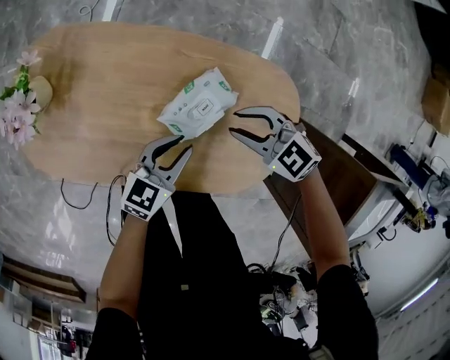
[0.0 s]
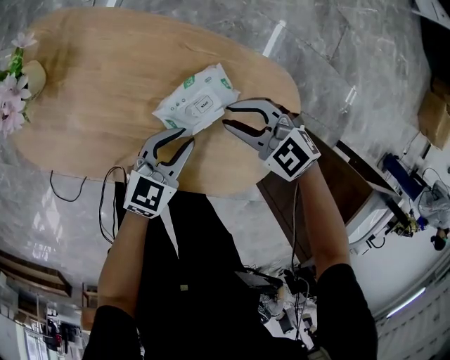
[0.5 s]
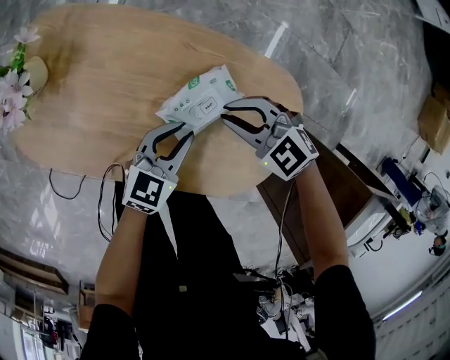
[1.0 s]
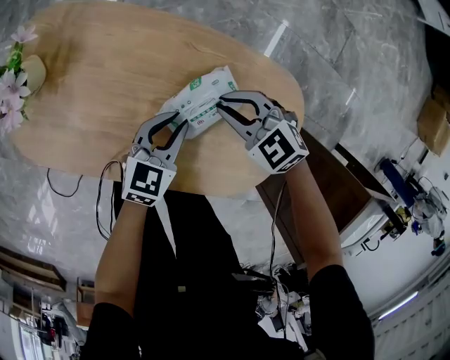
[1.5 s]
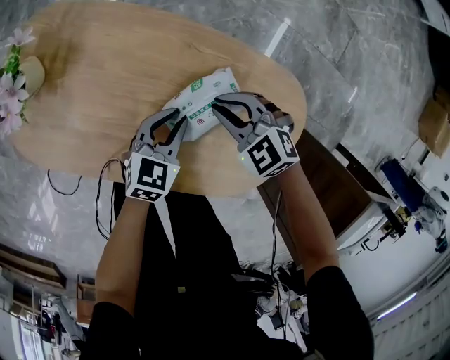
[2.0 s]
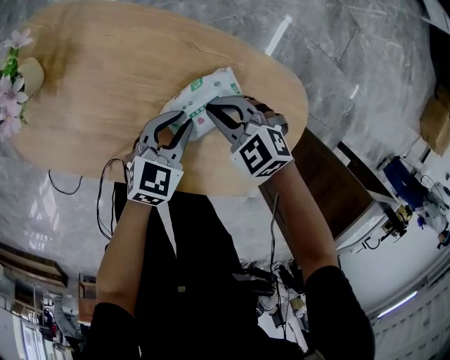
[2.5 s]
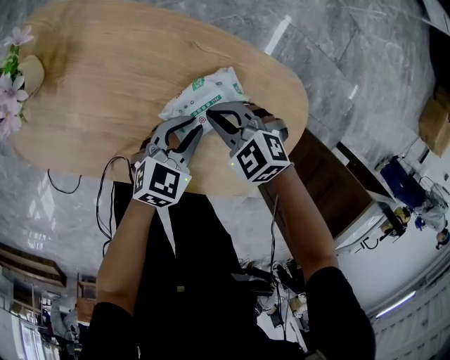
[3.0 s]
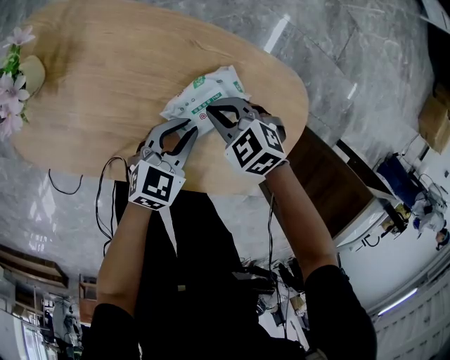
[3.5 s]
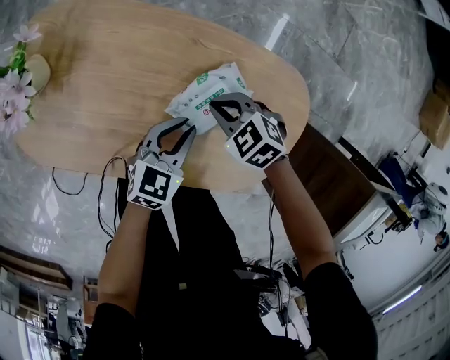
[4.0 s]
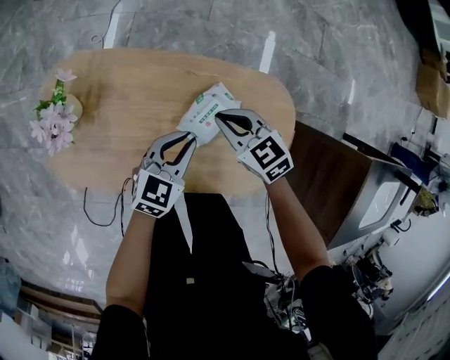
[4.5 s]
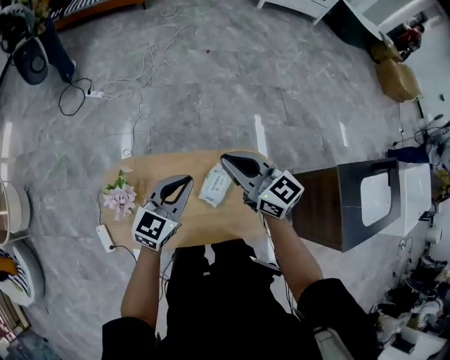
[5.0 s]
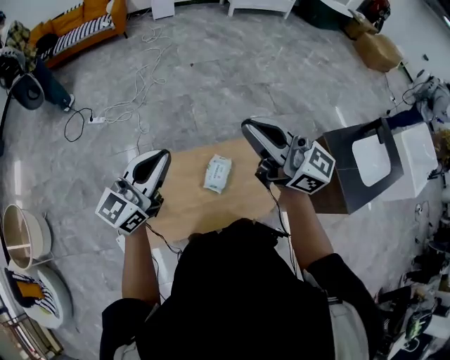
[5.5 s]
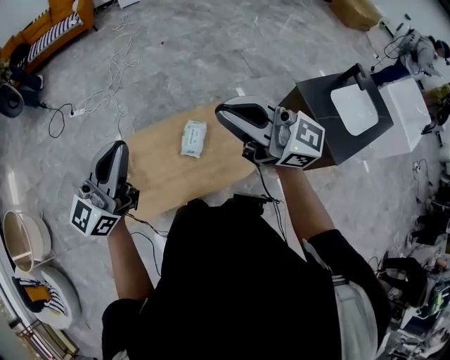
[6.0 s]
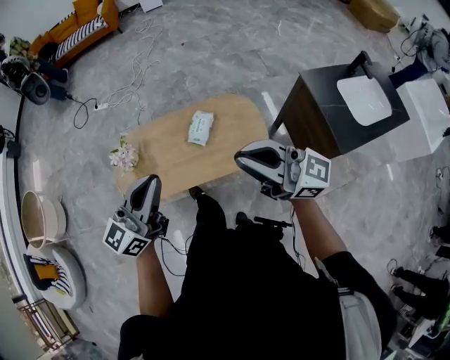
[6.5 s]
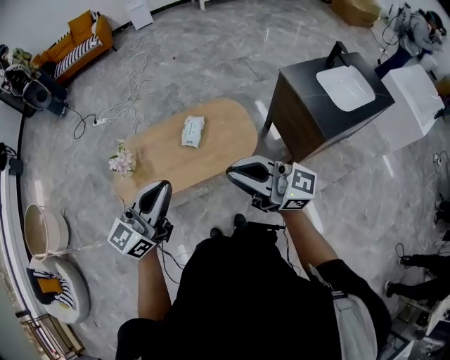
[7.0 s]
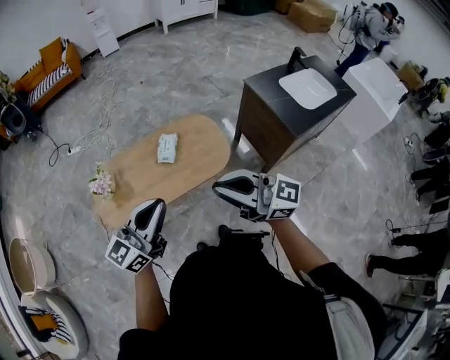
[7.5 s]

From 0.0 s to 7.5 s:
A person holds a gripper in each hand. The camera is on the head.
From 0.0 s to 2.0 s: The left gripper travels downward by about 5 cm. Meanwhile the right gripper ends up some 10 cm from where it was.
From 2.0 s to 4.0 s: The grippers move only a little.
From 4.0 s to 5.5 s: Both grippers travel together upward, some 70 cm. The left gripper points its fingers approximately 40 degrees further upward. The right gripper points its fingers approximately 80 degrees further upward.
From 5.5 s to 7.5 s: The two grippers travel together, backward, about 50 cm.

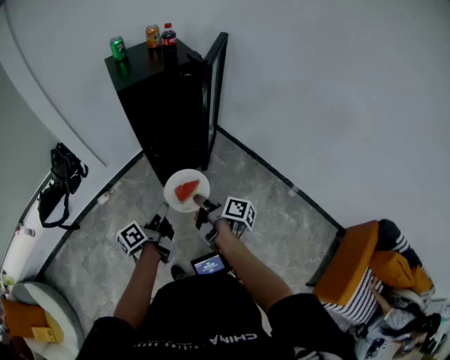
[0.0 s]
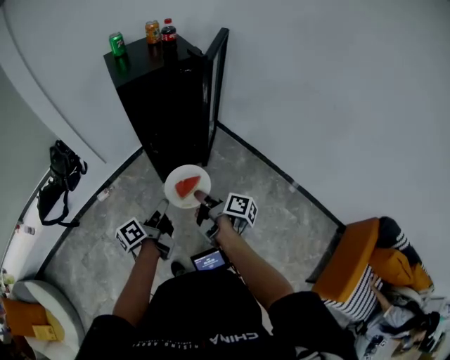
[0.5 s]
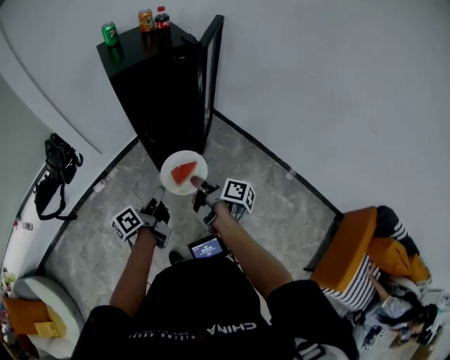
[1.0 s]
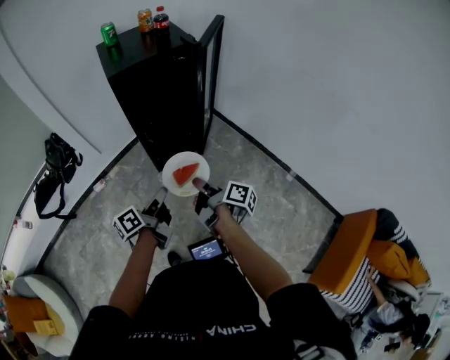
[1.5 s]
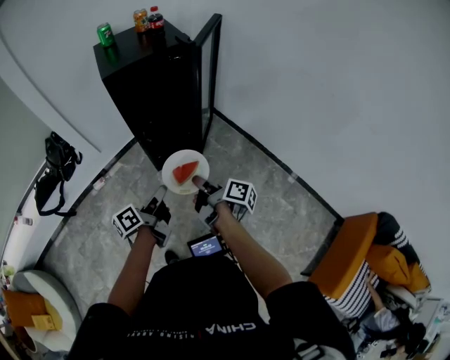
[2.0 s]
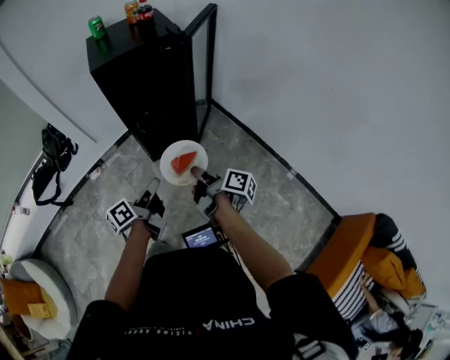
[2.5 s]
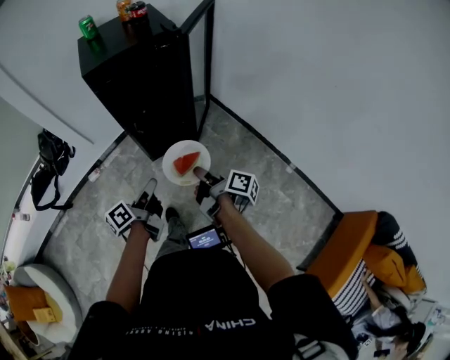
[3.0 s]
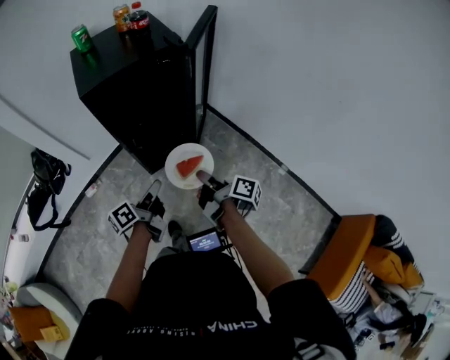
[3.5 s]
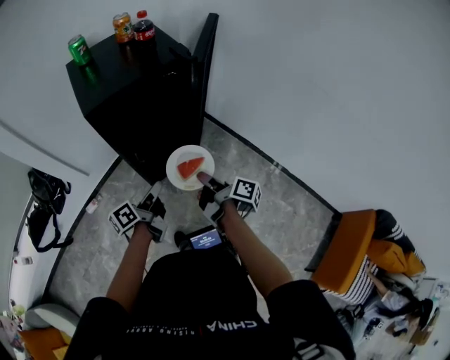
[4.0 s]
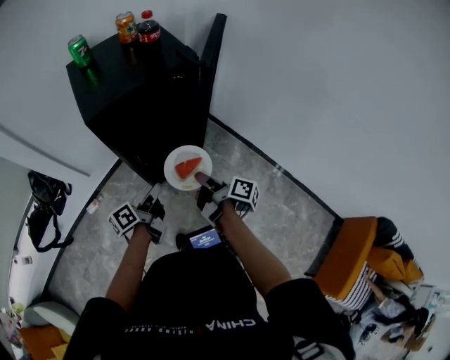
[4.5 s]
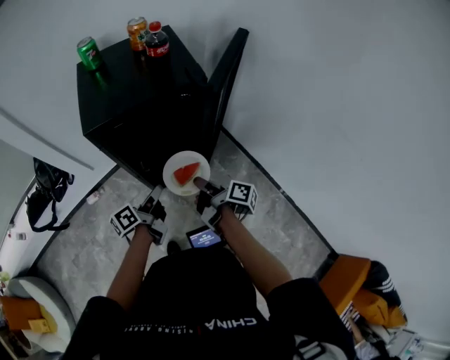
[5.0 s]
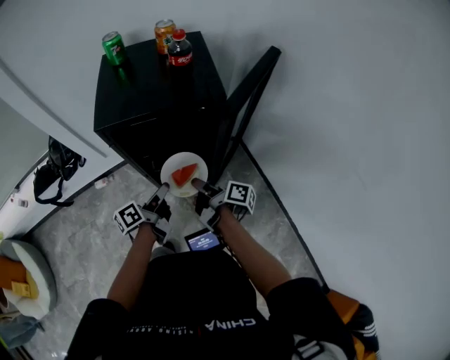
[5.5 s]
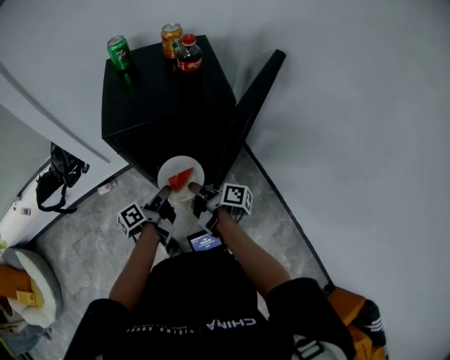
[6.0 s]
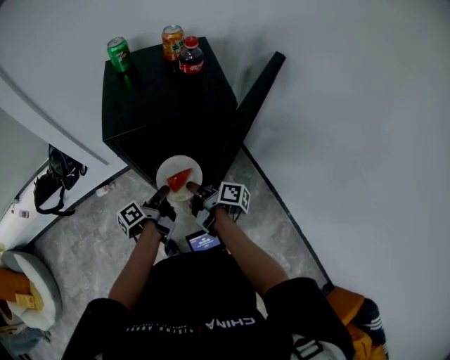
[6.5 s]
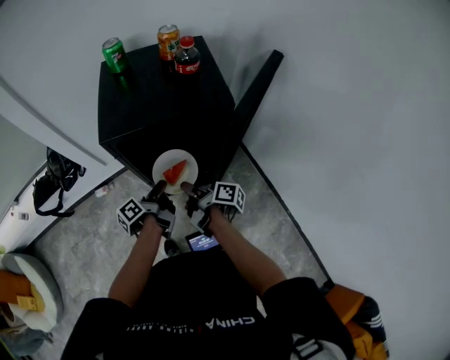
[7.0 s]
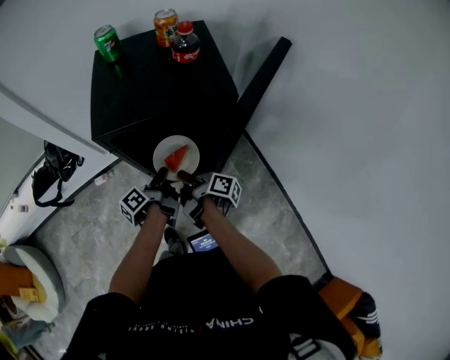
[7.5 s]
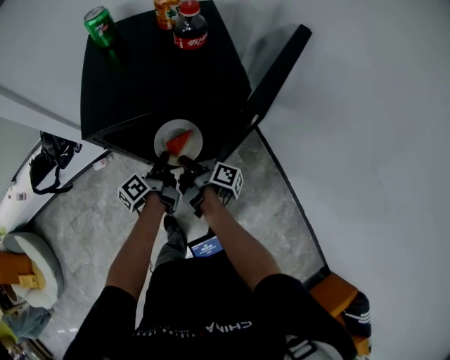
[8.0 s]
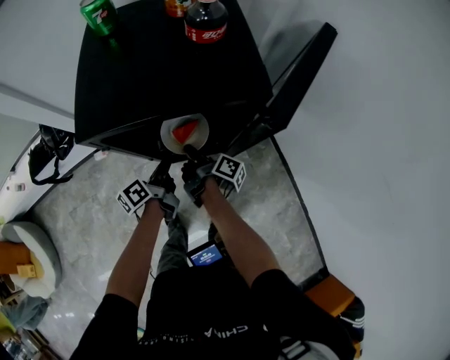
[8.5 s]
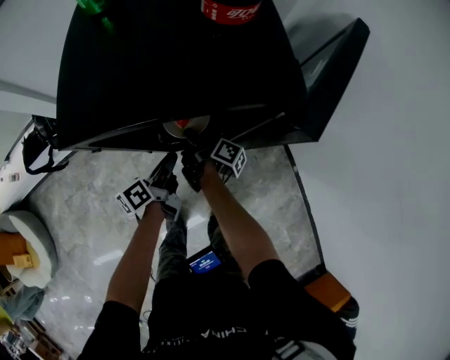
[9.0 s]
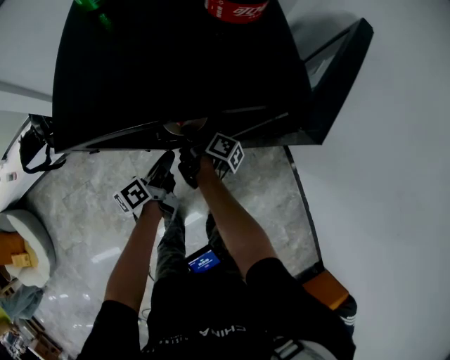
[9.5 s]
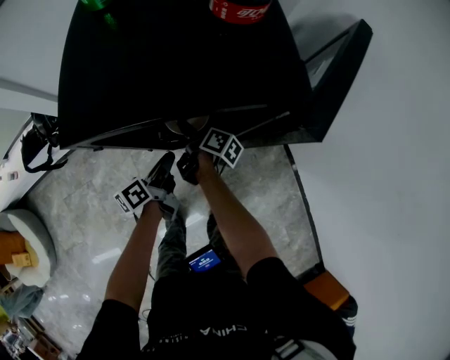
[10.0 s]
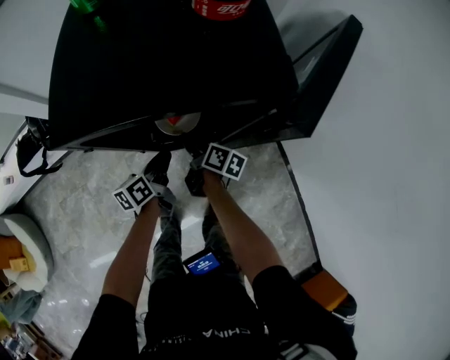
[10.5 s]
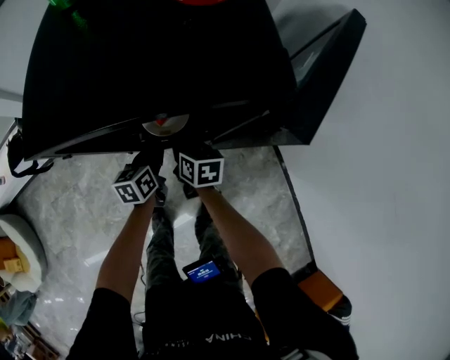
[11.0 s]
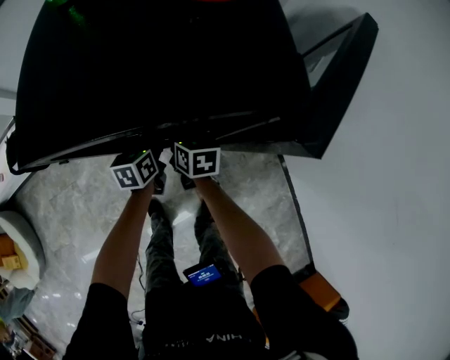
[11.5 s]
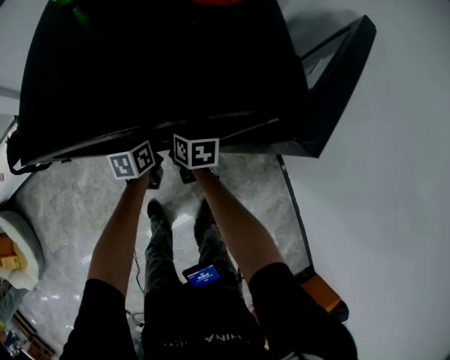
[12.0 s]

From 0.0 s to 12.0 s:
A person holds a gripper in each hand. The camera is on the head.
From 0.0 s to 2.0 s: The left gripper shifts by some 5 cm.
From 2.0 s to 4.0 s: The left gripper ends up some 20 cm from where it was.
From 4.0 s to 6.0 s: The left gripper ends up roughly 15 cm from where it was, and rotates approximately 30 degrees.
From 6.0 s to 8.0 s: The left gripper ends up roughly 10 cm from where it was.
From 8.0 s to 10.0 s: The left gripper heads downward, covering roughly 10 cm.
From 10.0 s to 12.0 s: The left gripper ends up some 15 cm from where it was, and swivels roughly 40 degrees.

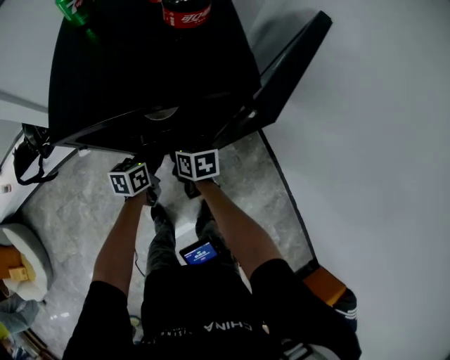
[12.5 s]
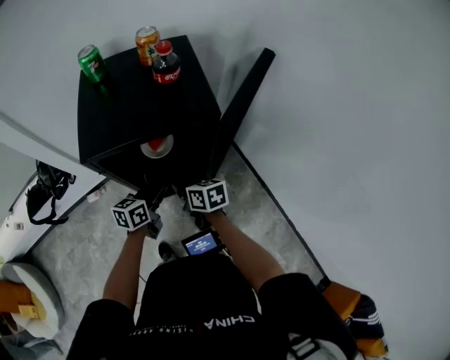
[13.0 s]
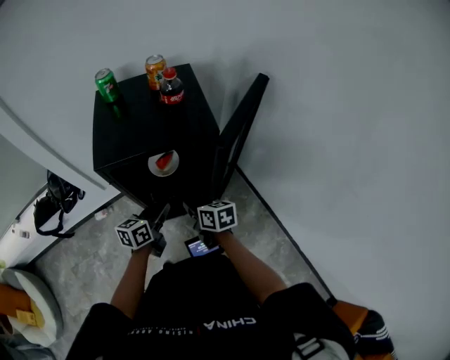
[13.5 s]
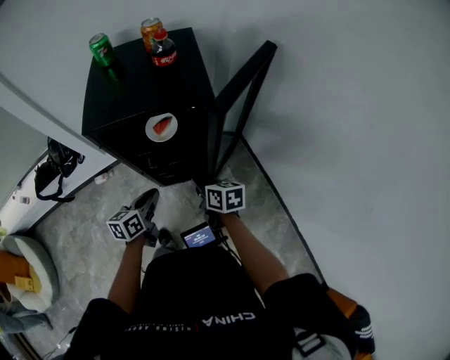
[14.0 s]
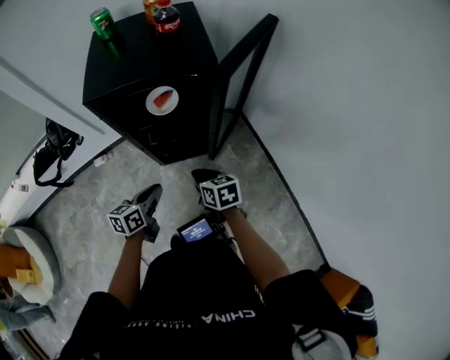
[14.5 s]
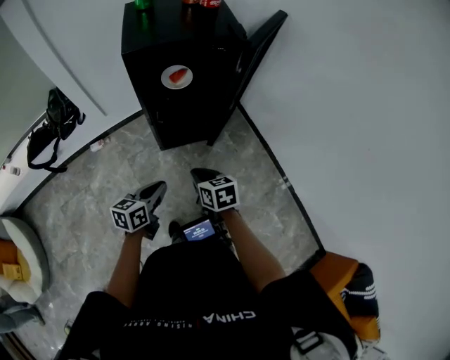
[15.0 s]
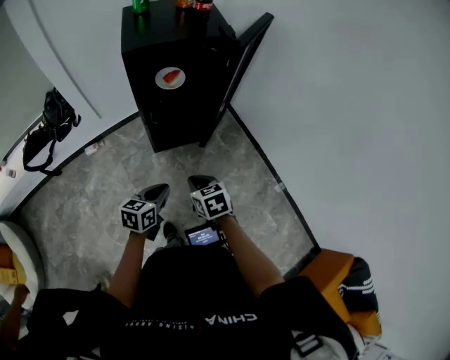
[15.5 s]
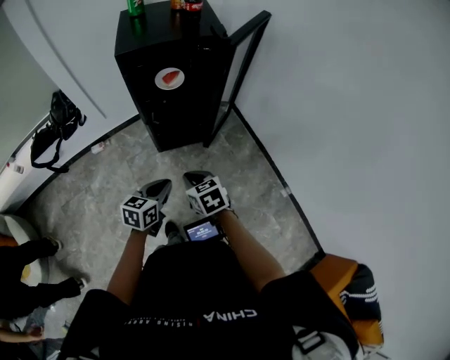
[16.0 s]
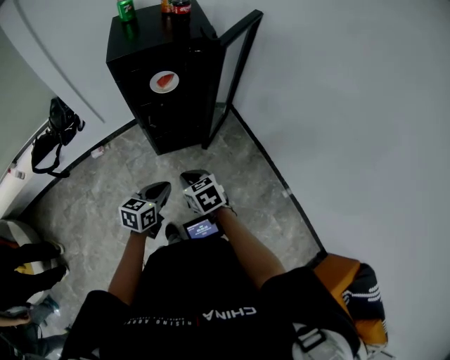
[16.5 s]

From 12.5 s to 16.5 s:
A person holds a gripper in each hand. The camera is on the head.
From 12.5 s to 14.5 s: The left gripper moves about 25 cm.
From 14.5 s to 16.5 s: The left gripper shifts by some 20 cm.

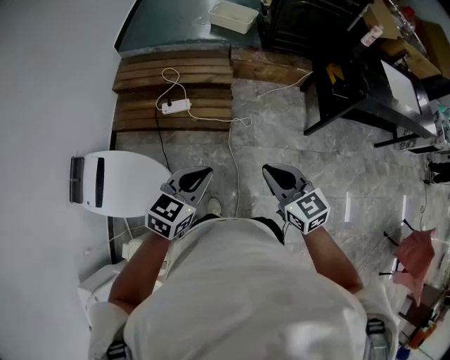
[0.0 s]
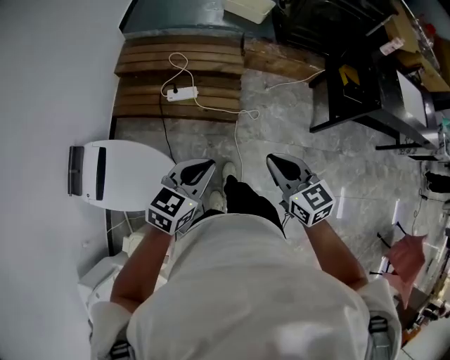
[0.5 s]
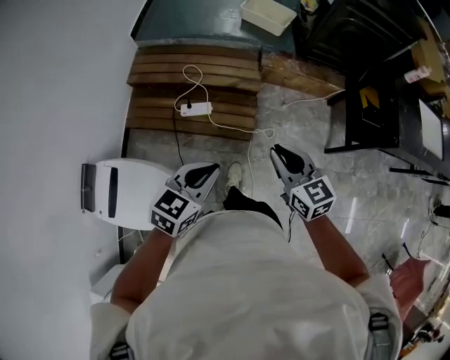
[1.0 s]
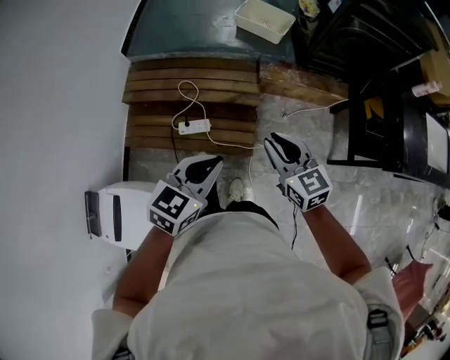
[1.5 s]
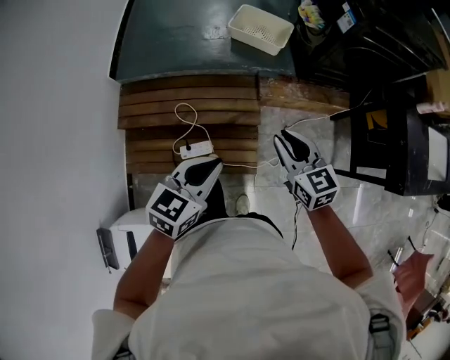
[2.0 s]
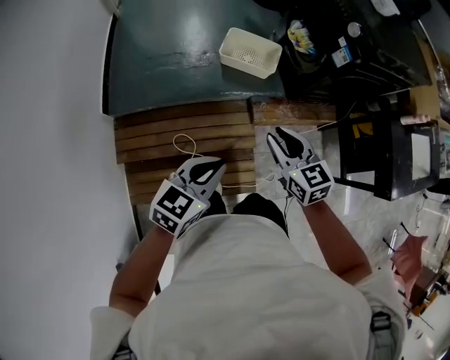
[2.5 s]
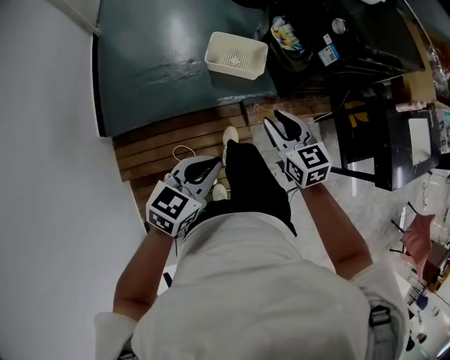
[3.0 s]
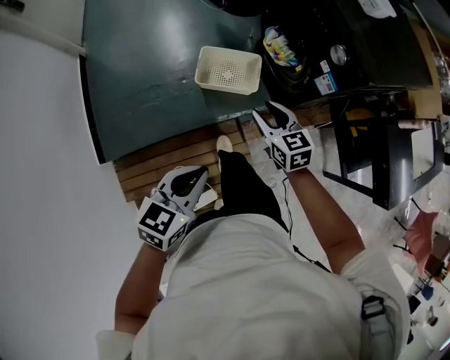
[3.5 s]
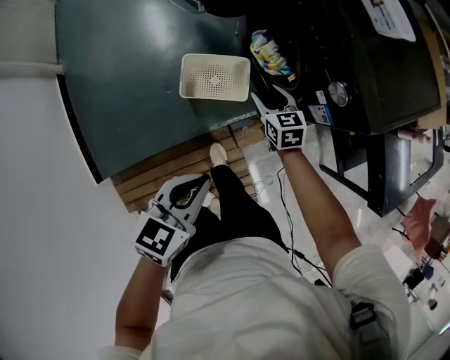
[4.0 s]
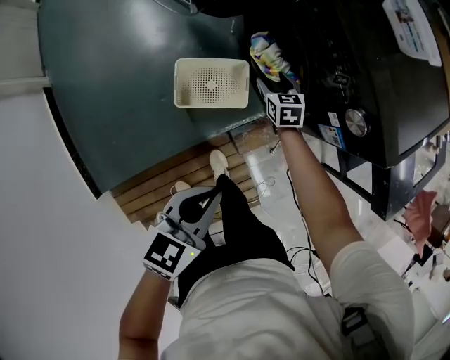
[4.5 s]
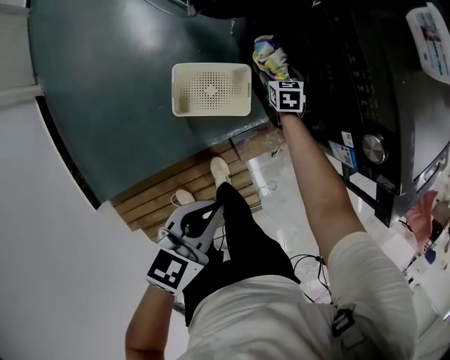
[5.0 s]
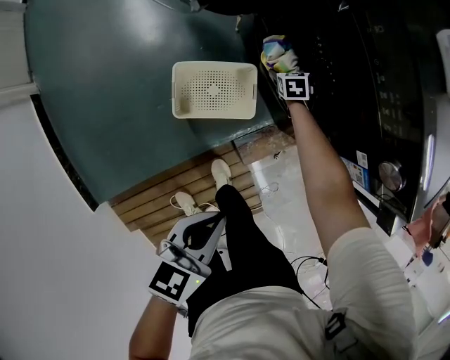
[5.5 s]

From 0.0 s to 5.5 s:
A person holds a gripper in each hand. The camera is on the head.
From 0.0 s to 2.0 s: The pair of grippers is taken forward, some 60 cm.
From 2.0 s to 3.5 s: The grippers both shift forward by approximately 40 cm.
From 3.5 s to 5.5 s: The right gripper moves some 60 cm, turns by about 40 degrees, and opens up. Meanwhile the left gripper shifts by roughly 25 cm.
